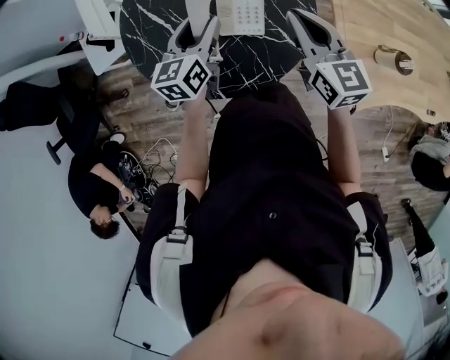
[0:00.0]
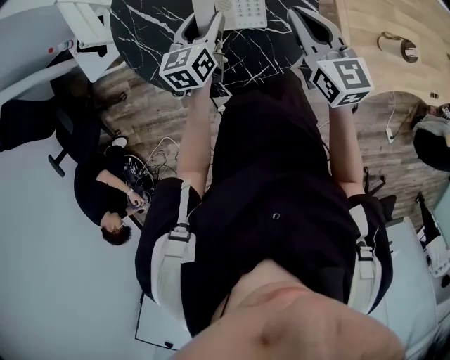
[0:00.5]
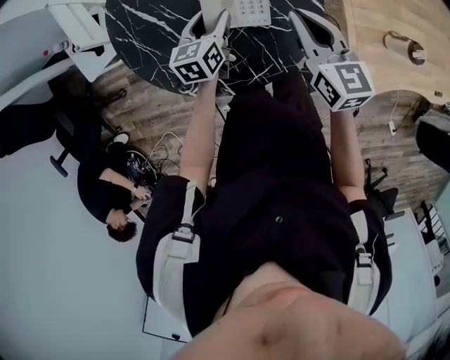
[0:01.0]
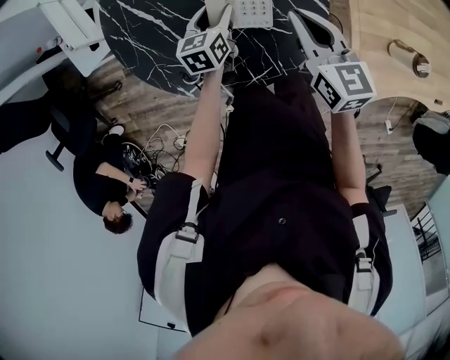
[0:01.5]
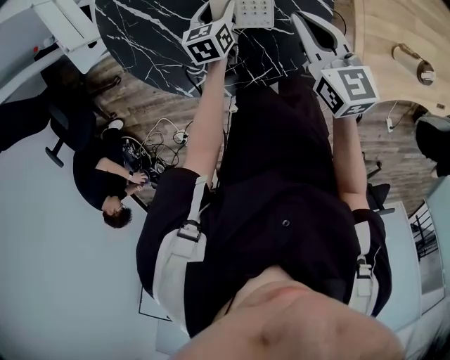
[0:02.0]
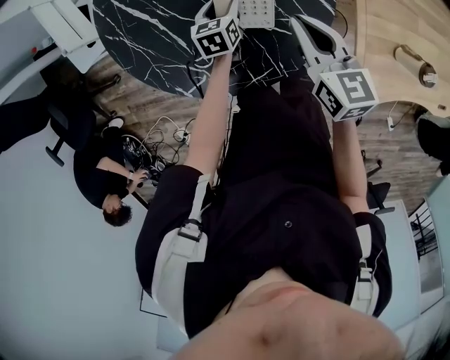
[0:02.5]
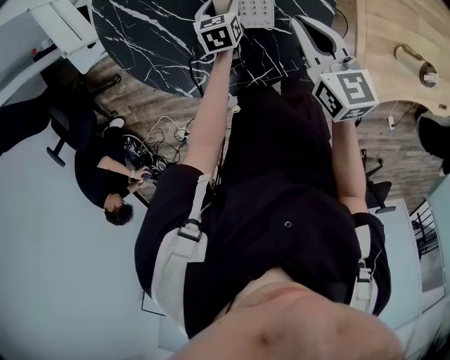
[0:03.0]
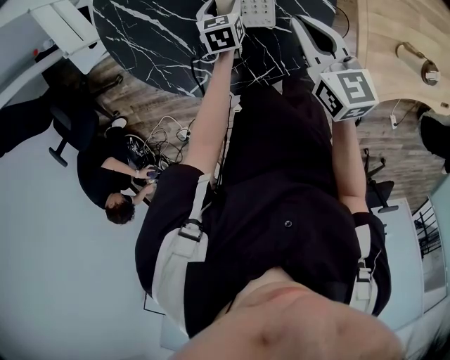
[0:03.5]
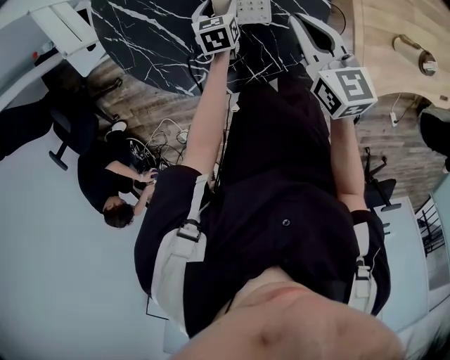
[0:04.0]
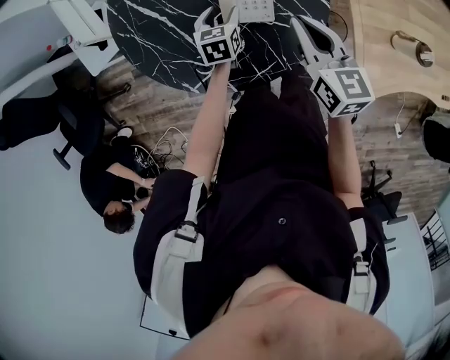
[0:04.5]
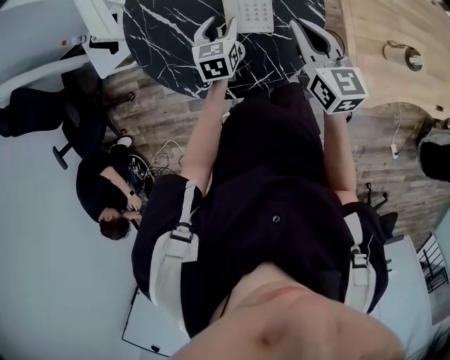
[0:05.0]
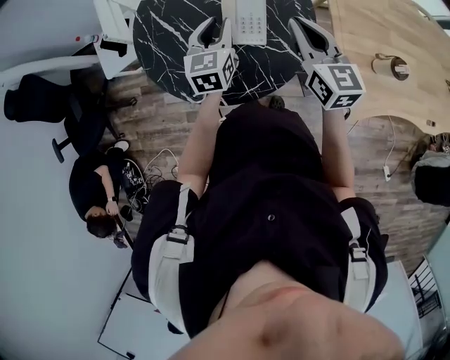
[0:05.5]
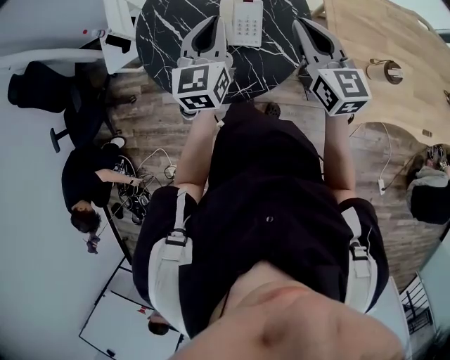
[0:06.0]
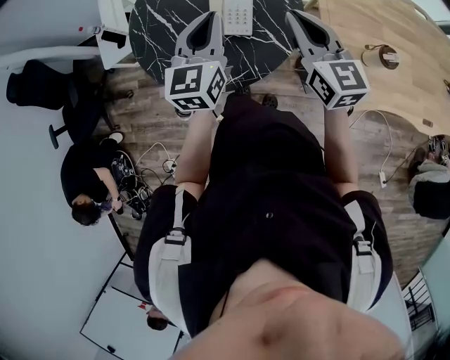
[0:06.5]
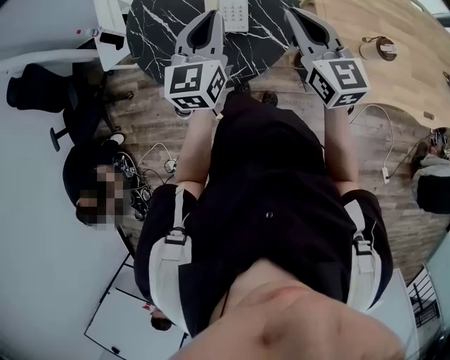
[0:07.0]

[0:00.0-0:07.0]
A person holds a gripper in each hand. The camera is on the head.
0:00.0 to 0:02.0: The left gripper moves downward, roughly 20 cm, and swivels roughly 20 degrees. The right gripper goes approximately 10 cm downward.
0:02.0 to 0:03.5: The grippers move only a little.
0:03.5 to 0:05.0: The left gripper travels upward and backward by roughly 15 cm. The right gripper goes some 10 cm upward and backward.
0:05.0 to 0:07.0: The left gripper moves upward, backward and to the right, approximately 30 cm, swivels roughly 30 degrees, and closes, while the right gripper moves upward, to the right and backward, approximately 15 cm.

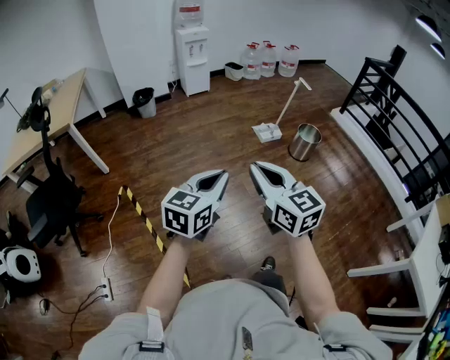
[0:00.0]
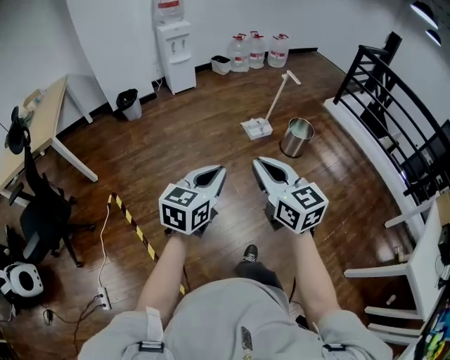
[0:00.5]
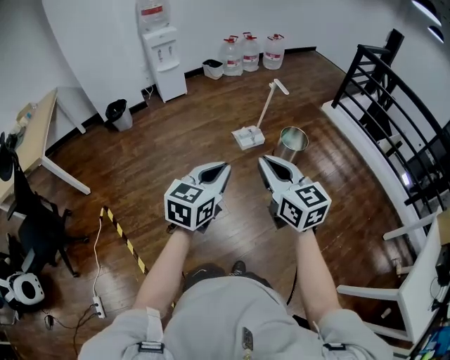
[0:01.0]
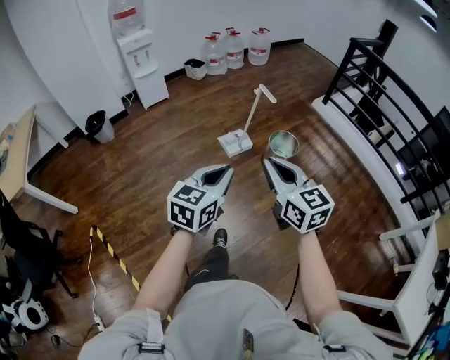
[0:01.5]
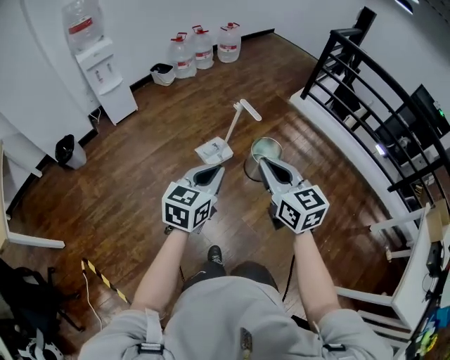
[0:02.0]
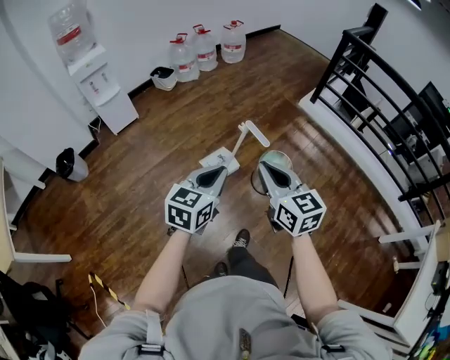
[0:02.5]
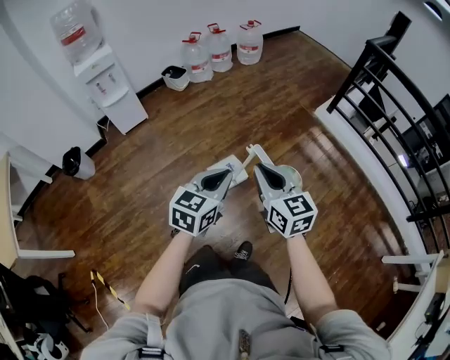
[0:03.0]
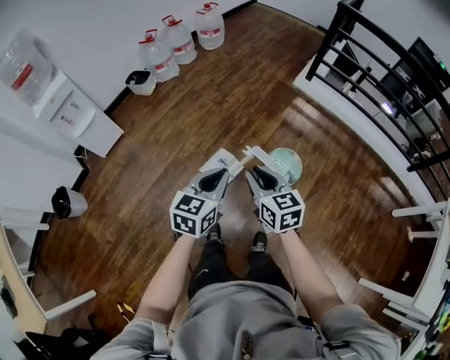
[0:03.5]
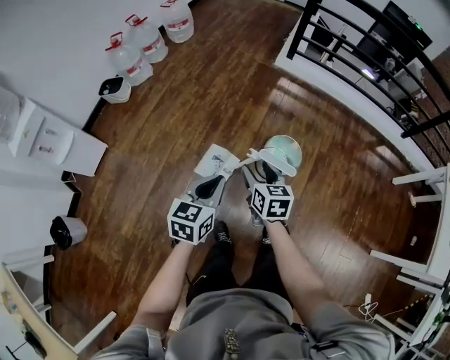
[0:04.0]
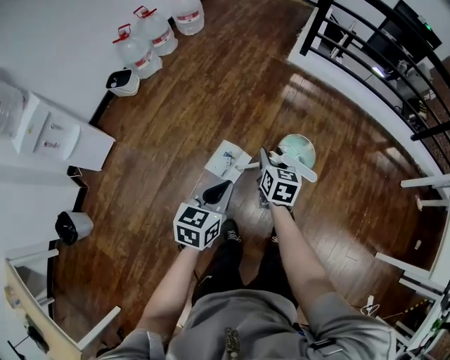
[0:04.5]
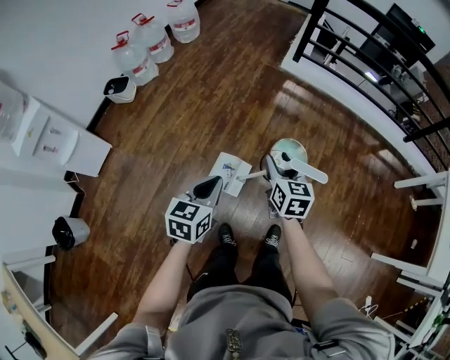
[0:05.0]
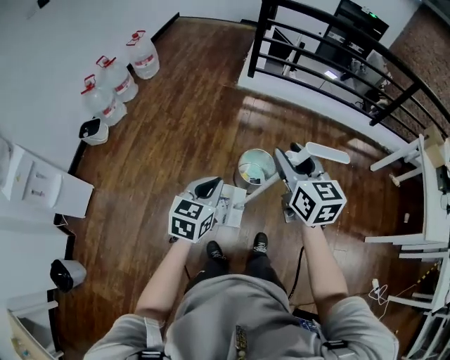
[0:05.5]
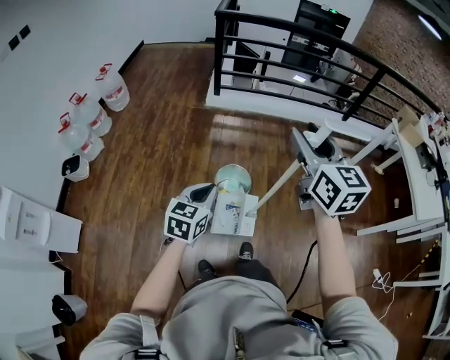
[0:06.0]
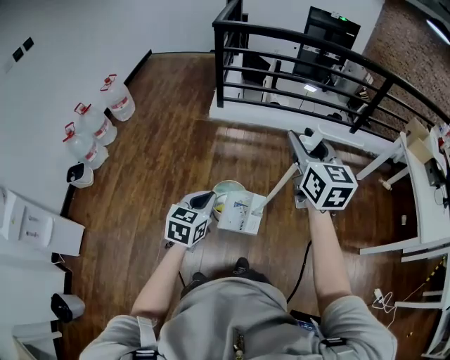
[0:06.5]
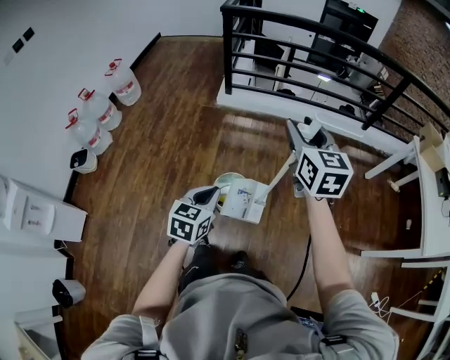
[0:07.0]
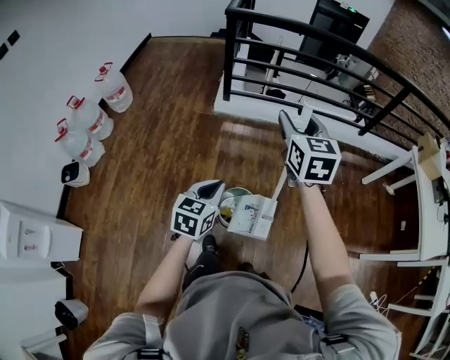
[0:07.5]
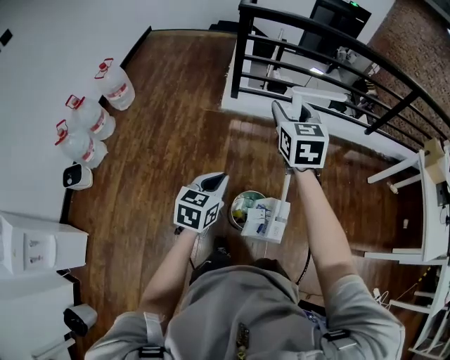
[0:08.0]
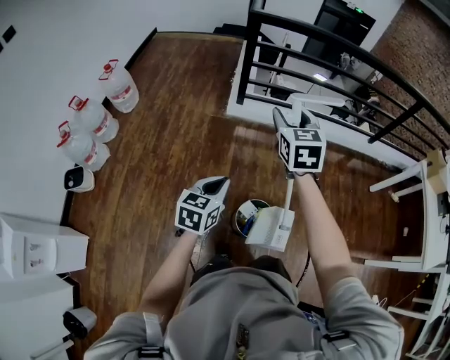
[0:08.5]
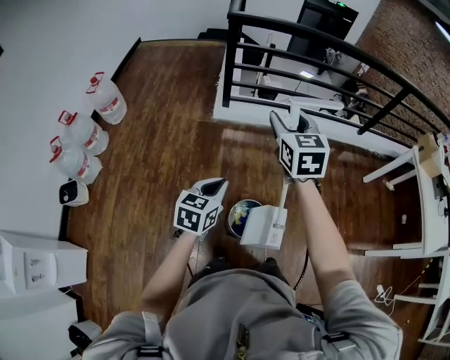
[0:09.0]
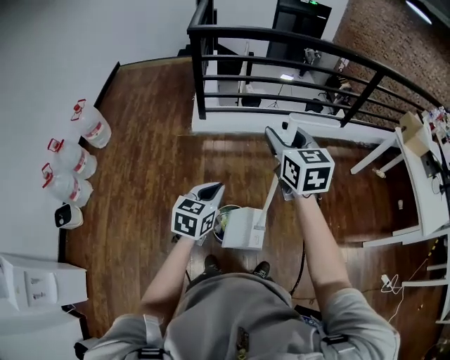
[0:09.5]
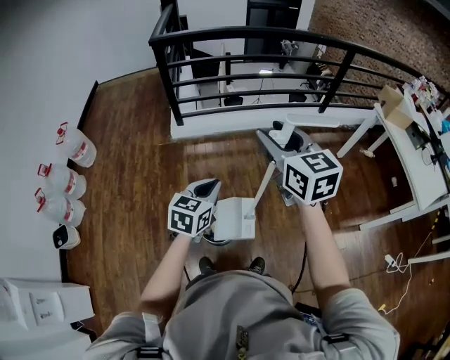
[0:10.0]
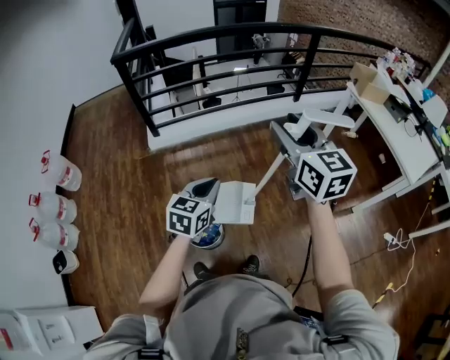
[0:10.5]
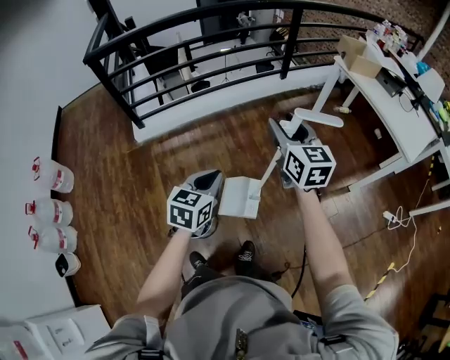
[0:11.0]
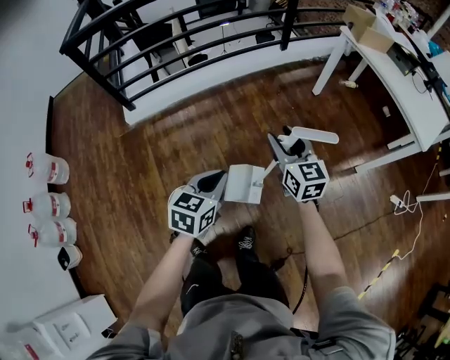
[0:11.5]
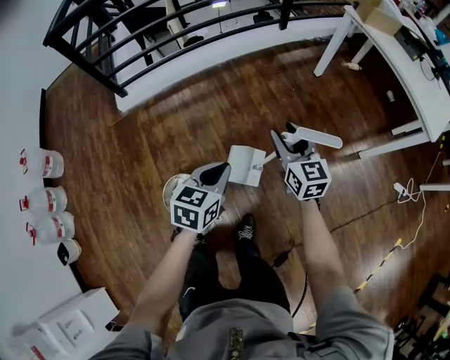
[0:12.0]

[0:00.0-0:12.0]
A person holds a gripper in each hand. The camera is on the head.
0:00.0 to 0:02.0: The pair of grippers is taken forward and to the right, about 60 cm. The right gripper turns by some 20 degrees.
0:02.0 to 0:04.0: The right gripper ends up about 50 cm from where it was, changes its angle by approximately 40 degrees, and opens up, while the left gripper ends up approximately 40 cm from where it was, and rotates approximately 20 degrees.
0:04.0 to 0:06.0: The left gripper moves to the right and upward, approximately 15 cm, and turns by some 20 degrees. The right gripper travels upward and to the right by roughly 50 cm, and swivels approximately 40 degrees.
0:06.0 to 0:08.0: The right gripper is displaced forward and to the left by roughly 40 cm; the left gripper heads forward, covering roughly 30 cm.
0:08.0 to 0:10.0: Both grippers travel together to the right, about 25 cm.
0:10.0 to 0:12.0: The right gripper heads downward and to the right, covering about 40 cm, and rotates roughly 20 degrees; the left gripper goes approximately 30 cm to the right and downward.

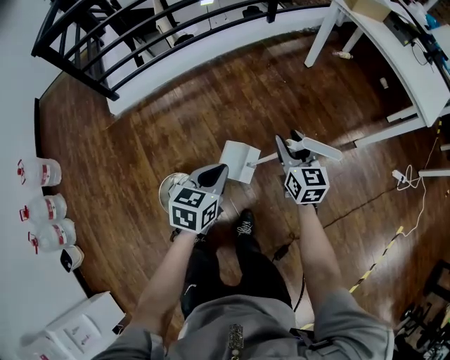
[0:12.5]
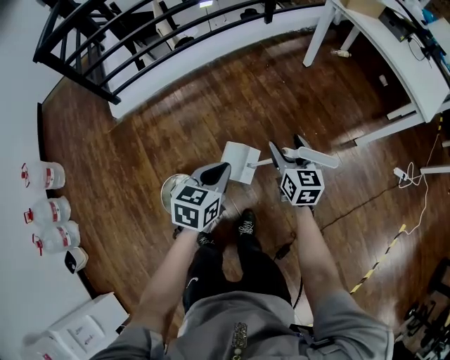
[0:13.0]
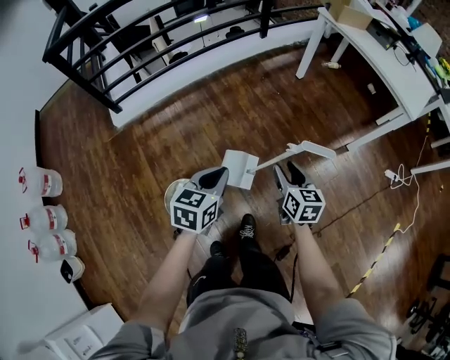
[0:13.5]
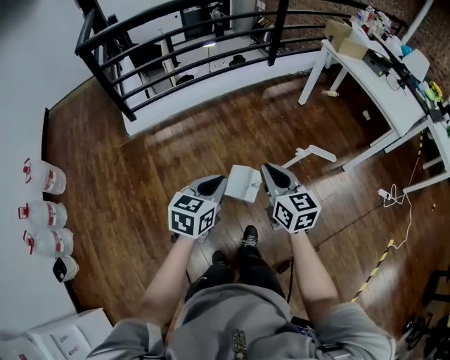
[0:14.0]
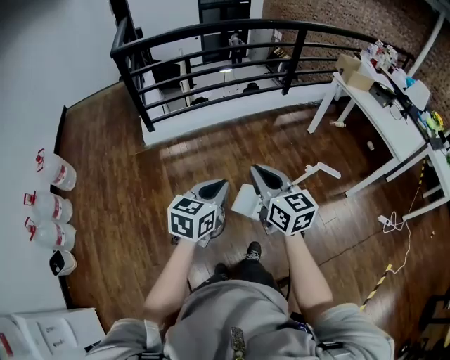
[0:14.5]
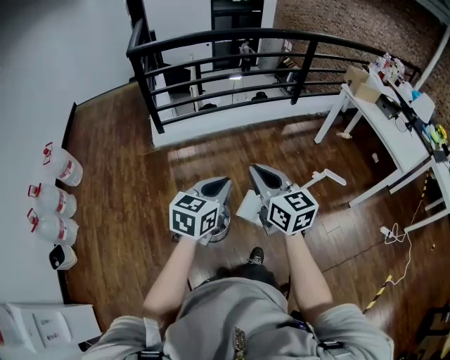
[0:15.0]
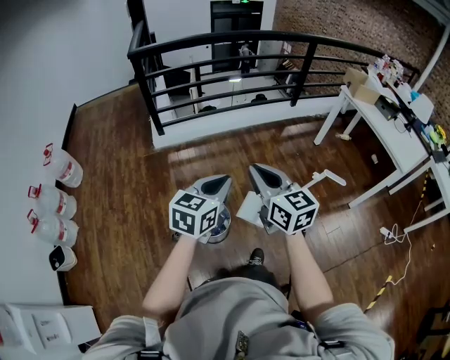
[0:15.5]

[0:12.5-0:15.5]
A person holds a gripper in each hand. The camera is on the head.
0:12.5 to 0:14.0: The left gripper moves upward, backward and to the left, approximately 20 cm. Meanwhile the right gripper shifts about 30 cm backward, upward and to the left, and closes its fingers.
0:14.0 to 0:15.5: The left gripper goes approximately 15 cm upward, to the left and backward. The right gripper goes approximately 20 cm to the left and upward.

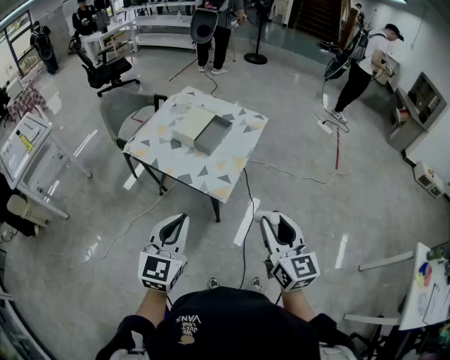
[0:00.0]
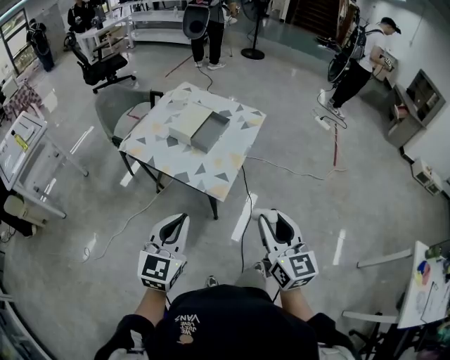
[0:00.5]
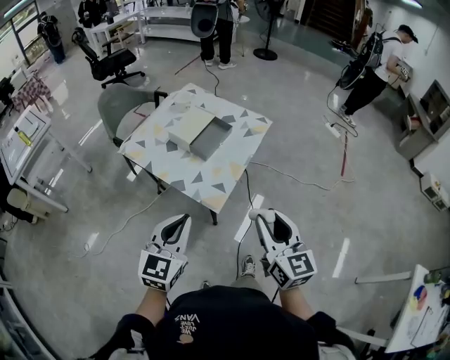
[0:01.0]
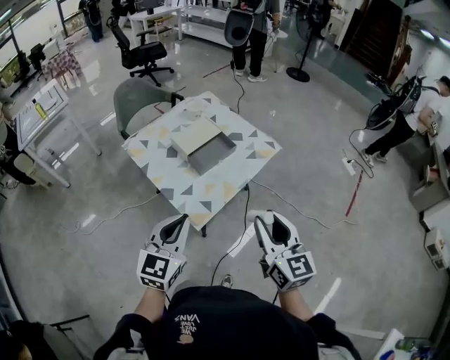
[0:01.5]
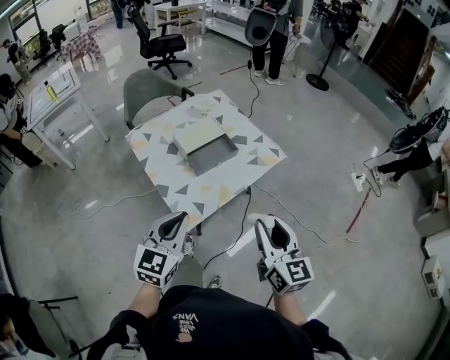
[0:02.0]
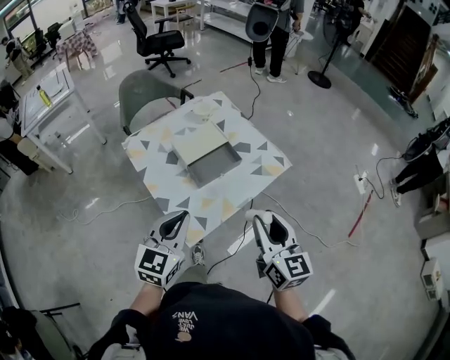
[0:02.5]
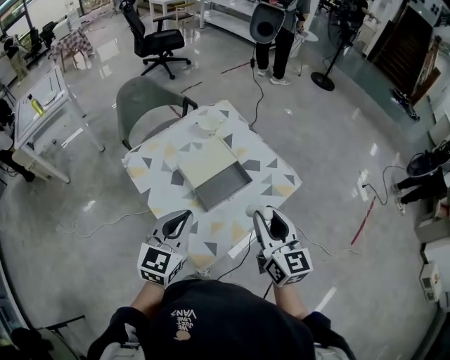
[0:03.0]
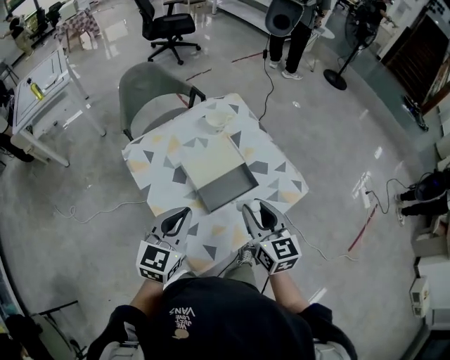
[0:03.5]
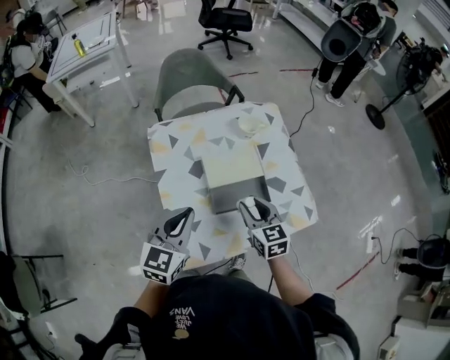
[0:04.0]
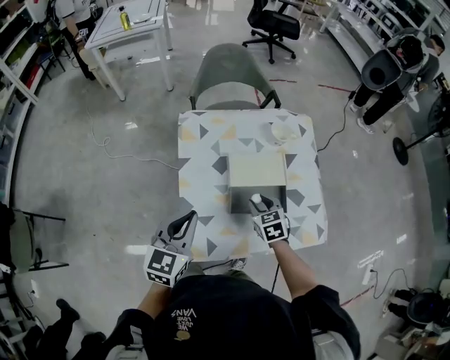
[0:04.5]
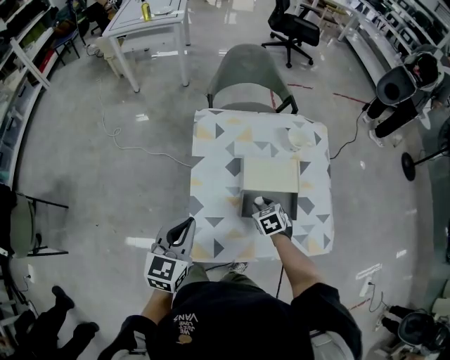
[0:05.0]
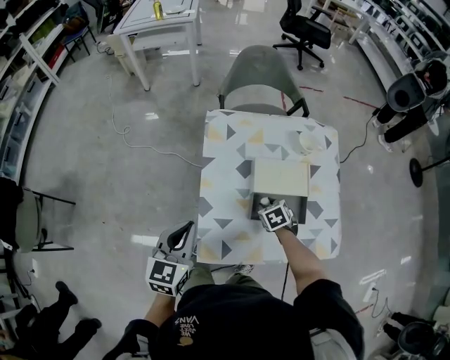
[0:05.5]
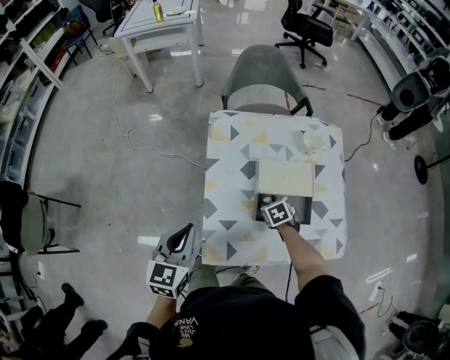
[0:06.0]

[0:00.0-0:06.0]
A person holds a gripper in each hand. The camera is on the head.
0:00.0 to 0:02.0: The right gripper travels forward and to the right by about 30 cm, and changes its angle by approximately 20 degrees, while the left gripper moves to the right and forward, some 25 cm, and turns by some 20 degrees.
0:02.0 to 0:04.0: The left gripper is displaced forward by some 25 cm, and rotates some 20 degrees. The right gripper goes some 40 cm forward and downward, and rotates roughly 40 degrees.
0:04.0 to 0:06.0: The right gripper goes some 20 cm downward, and angles its fingers downward, by about 40 degrees. The left gripper travels to the left by about 10 cm, and rotates roughly 30 degrees.
